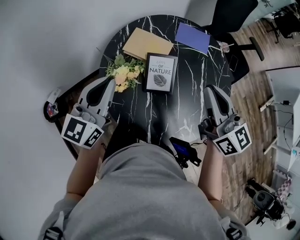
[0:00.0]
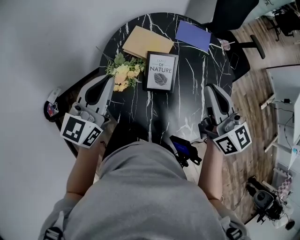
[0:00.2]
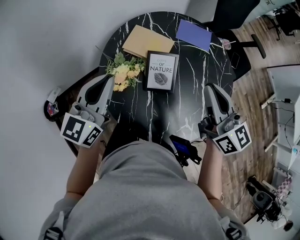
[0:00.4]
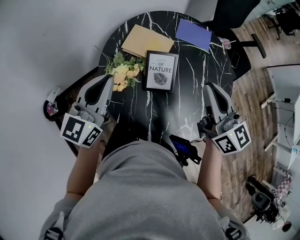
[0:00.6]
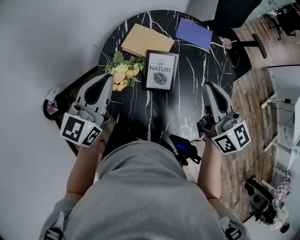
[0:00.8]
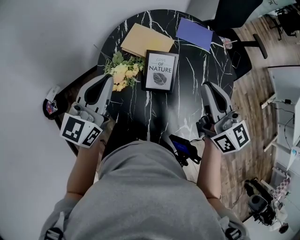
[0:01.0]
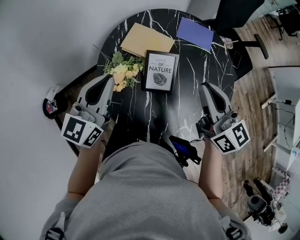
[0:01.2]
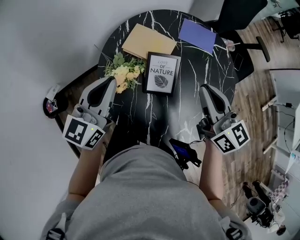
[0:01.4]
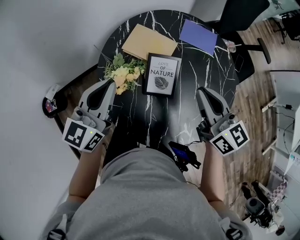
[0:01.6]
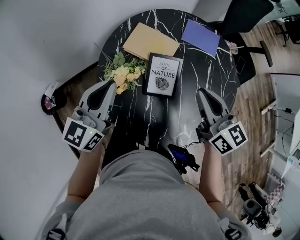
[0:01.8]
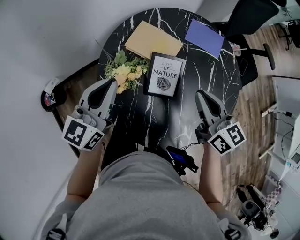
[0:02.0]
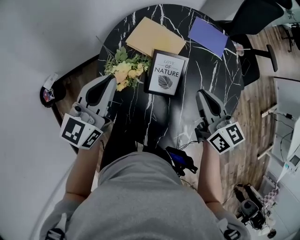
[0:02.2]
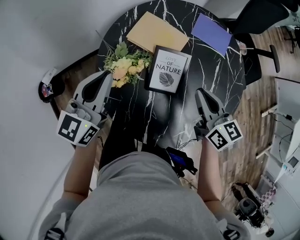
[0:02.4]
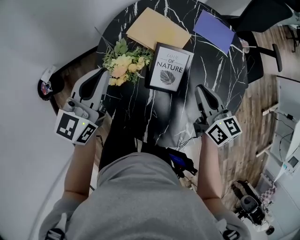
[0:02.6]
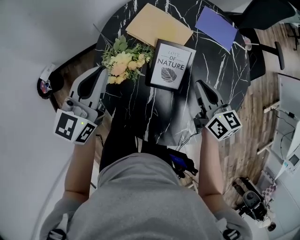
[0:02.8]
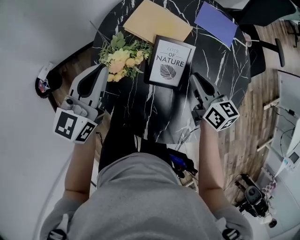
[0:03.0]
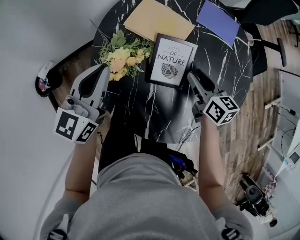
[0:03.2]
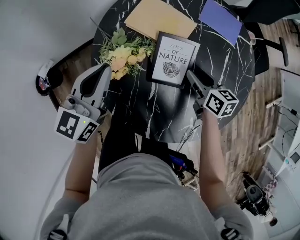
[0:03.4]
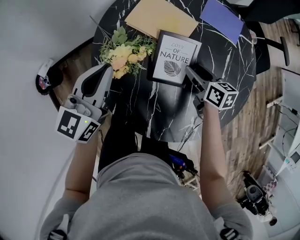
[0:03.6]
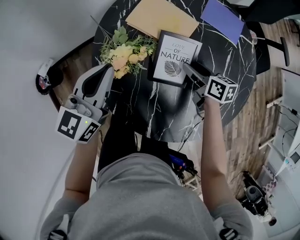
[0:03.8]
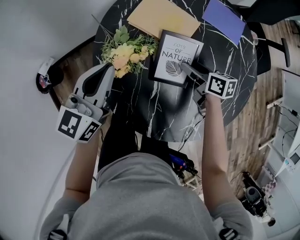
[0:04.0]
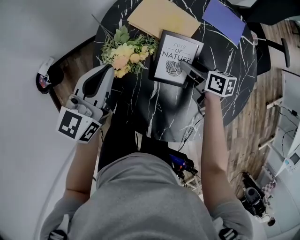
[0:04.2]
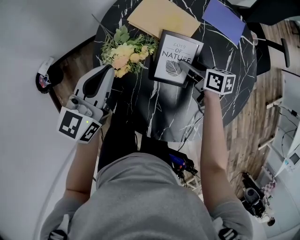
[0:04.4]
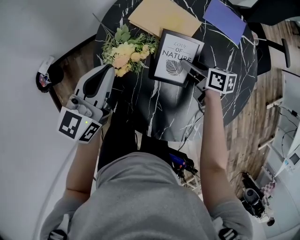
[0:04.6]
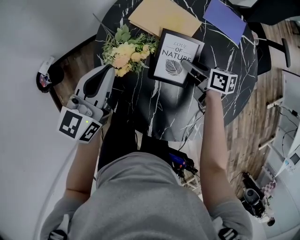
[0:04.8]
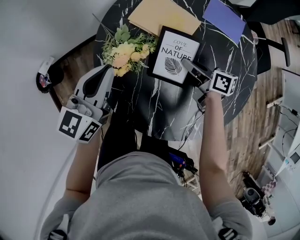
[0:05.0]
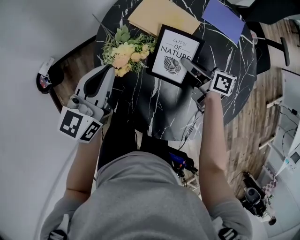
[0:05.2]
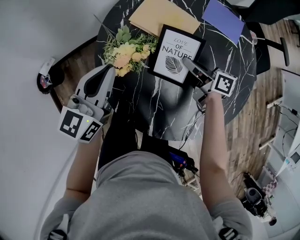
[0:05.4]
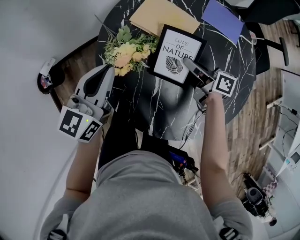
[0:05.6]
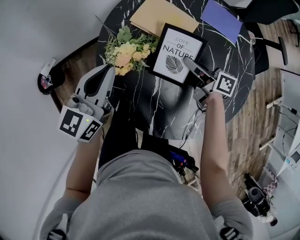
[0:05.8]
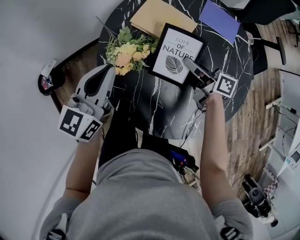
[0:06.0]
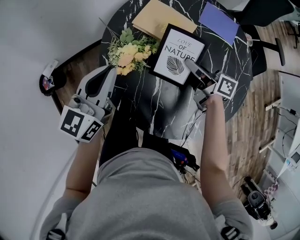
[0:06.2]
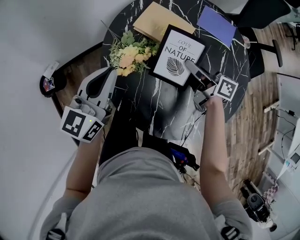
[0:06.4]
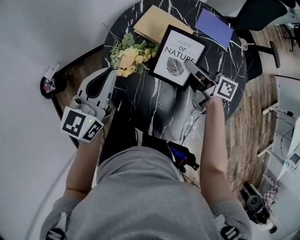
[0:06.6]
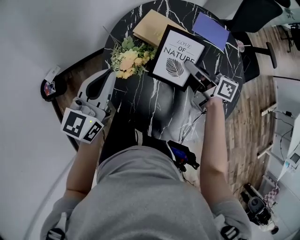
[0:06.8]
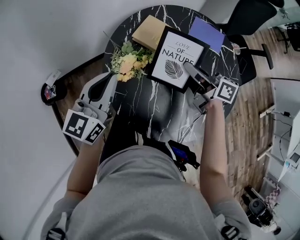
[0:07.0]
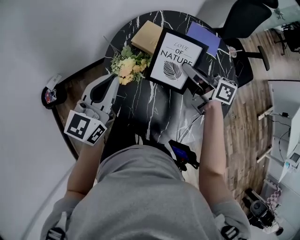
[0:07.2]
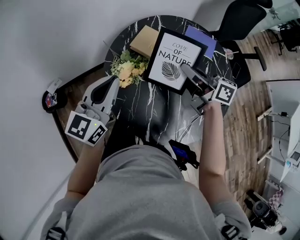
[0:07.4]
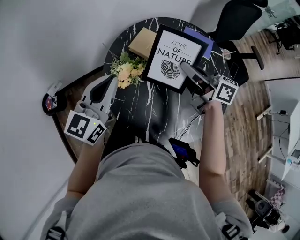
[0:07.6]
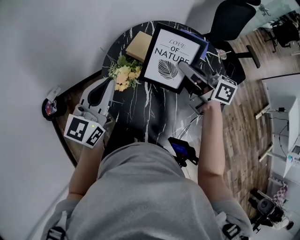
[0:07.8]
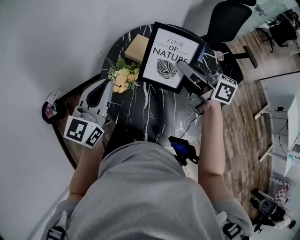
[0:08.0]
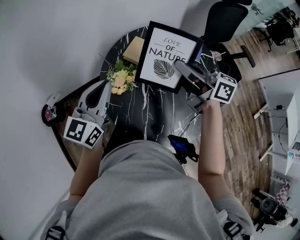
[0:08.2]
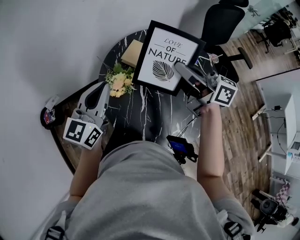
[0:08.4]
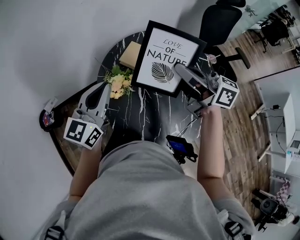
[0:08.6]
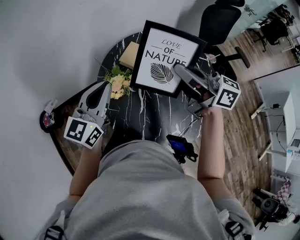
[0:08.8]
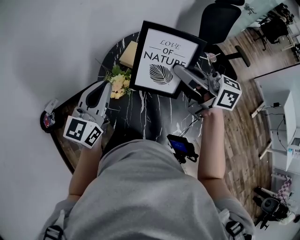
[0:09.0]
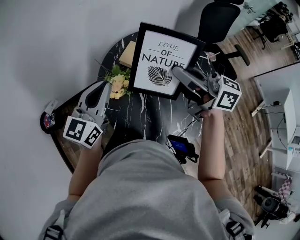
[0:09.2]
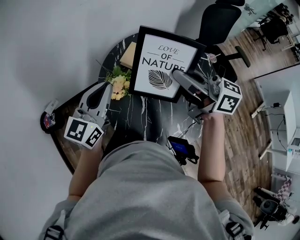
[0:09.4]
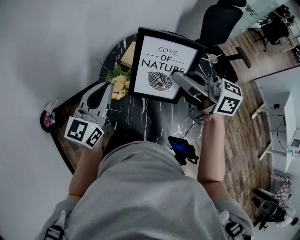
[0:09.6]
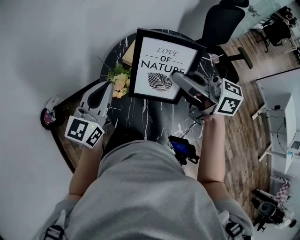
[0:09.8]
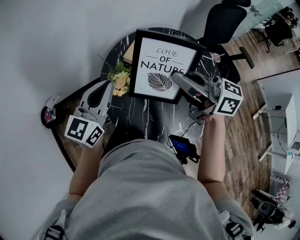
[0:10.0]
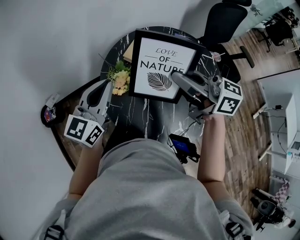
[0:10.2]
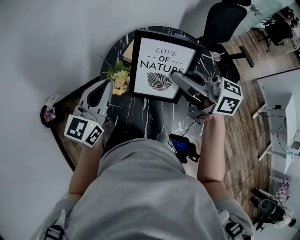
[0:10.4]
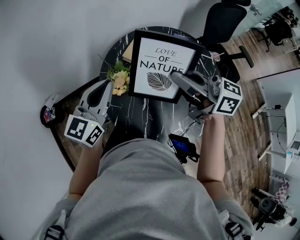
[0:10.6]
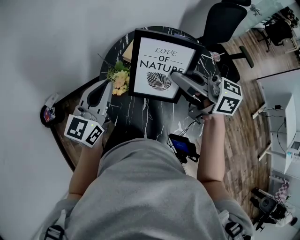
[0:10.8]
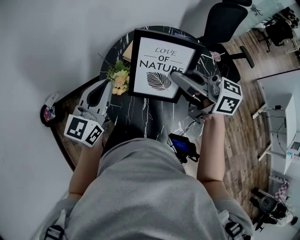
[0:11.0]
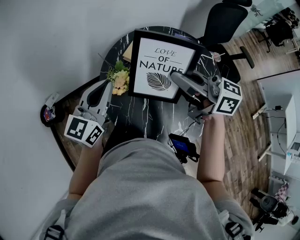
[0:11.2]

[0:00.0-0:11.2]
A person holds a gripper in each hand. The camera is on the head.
0:00.0 to 0:01.6: The right gripper is displaced downward by some 5 cm.
0:01.6 to 0:03.2: The right gripper goes roughly 20 cm downward, rotates some 20 degrees, and opens its fingers, while the left gripper heads downward, covering approximately 10 cm.
0:03.2 to 0:04.8: The right gripper is displaced downward by some 5 cm, and rotates some 20 degrees.
0:04.8 to 0:06.4: The left gripper moves about 5 cm; the right gripper heads upward, covering approximately 10 cm, changes its angle by some 30 degrees, and closes up.
0:06.4 to 0:08.0: The left gripper goes some 10 cm upward. The right gripper goes roughly 20 cm upward, and turns by roughly 20 degrees.
0:08.0 to 0:09.6: The right gripper moves upward, some 10 cm.
0:09.6 to 0:11.2: Both grippers stay about where they are.

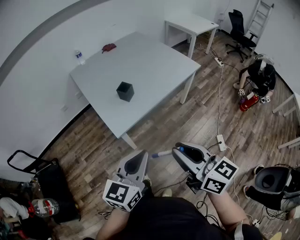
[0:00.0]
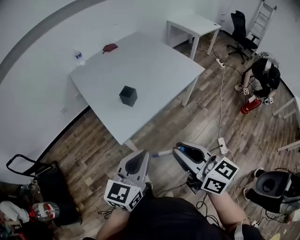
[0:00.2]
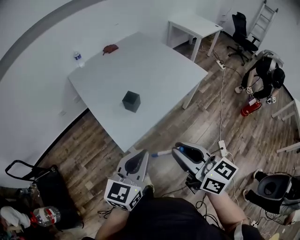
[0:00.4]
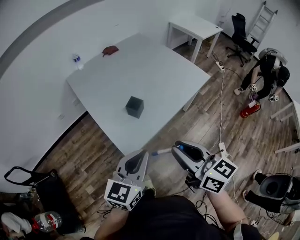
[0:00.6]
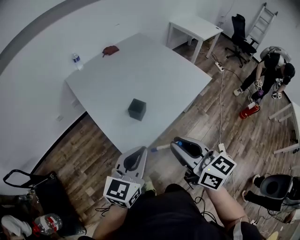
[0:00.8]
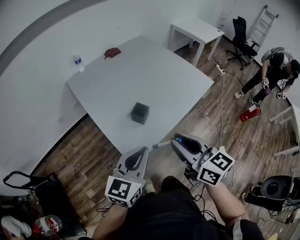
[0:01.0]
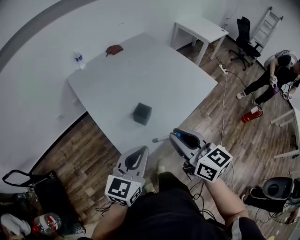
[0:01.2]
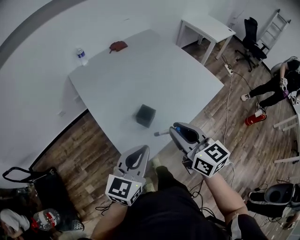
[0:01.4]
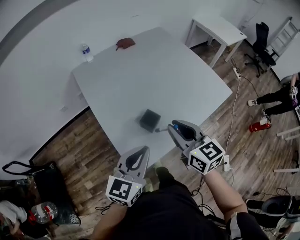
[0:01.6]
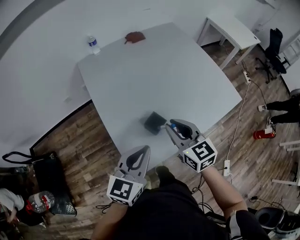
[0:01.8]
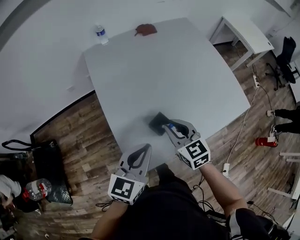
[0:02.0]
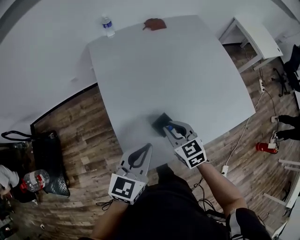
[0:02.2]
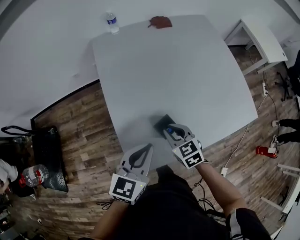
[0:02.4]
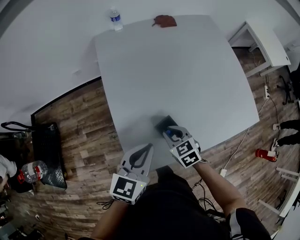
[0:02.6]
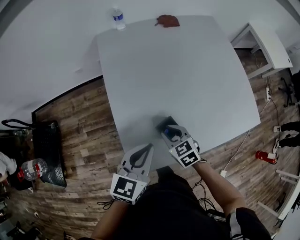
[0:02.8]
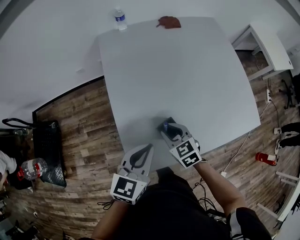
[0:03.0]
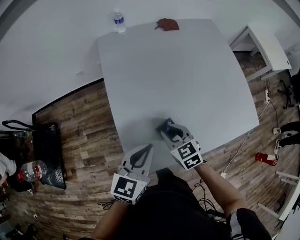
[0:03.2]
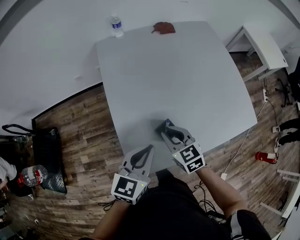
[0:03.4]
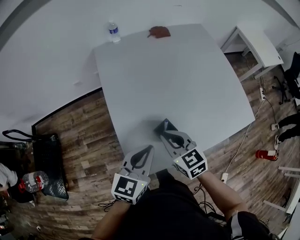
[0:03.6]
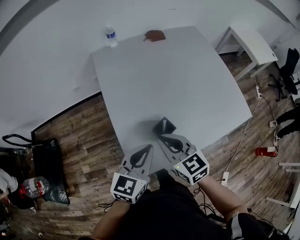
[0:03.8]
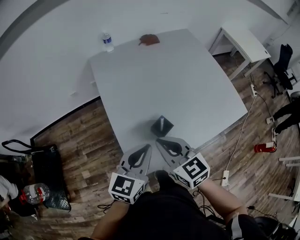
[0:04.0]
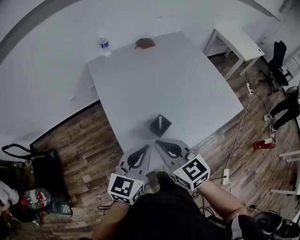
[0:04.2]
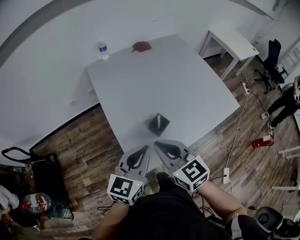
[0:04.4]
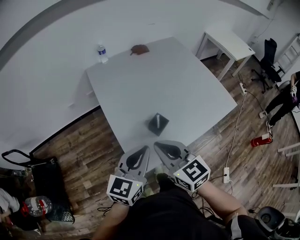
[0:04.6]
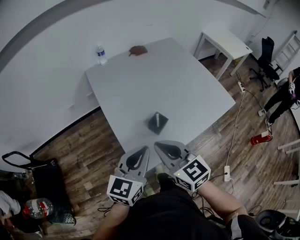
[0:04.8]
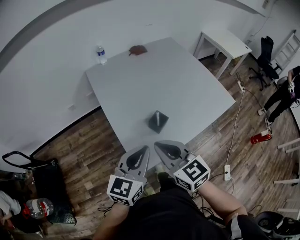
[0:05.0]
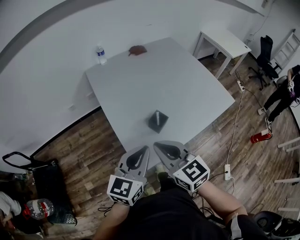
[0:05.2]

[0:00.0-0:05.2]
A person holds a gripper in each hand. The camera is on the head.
0:00.0 to 0:01.8: Both grippers move forward, some 35 cm. The right gripper rotates some 20 degrees.
0:01.8 to 0:03.4: The right gripper shifts approximately 15 cm downward and to the left, and turns by about 20 degrees. The left gripper is displaced forward by some 5 cm.
0:03.4 to 0:05.2: The left gripper moves backward and upward, about 10 cm, while the right gripper is displaced upward and backward by some 20 cm, and swivels approximately 20 degrees.

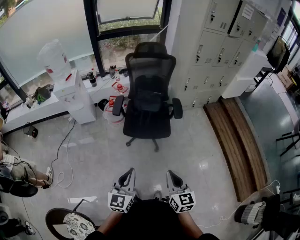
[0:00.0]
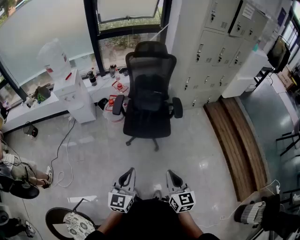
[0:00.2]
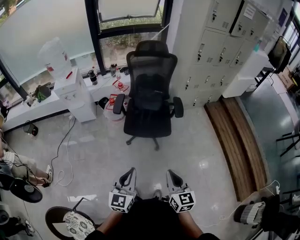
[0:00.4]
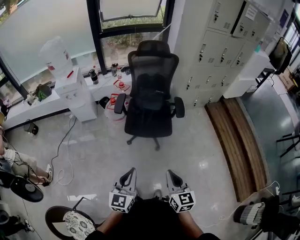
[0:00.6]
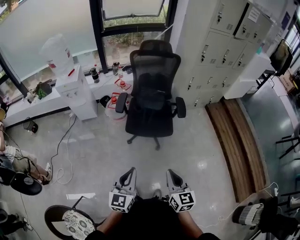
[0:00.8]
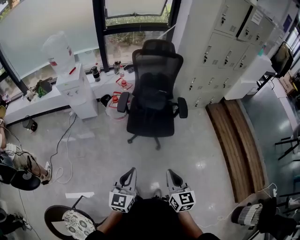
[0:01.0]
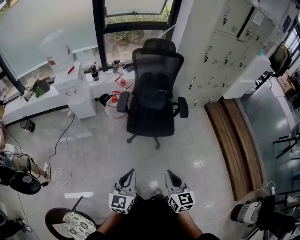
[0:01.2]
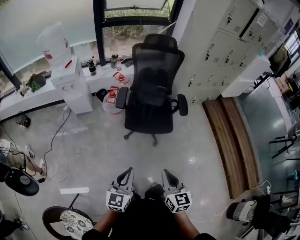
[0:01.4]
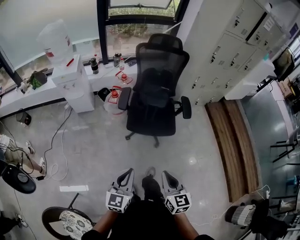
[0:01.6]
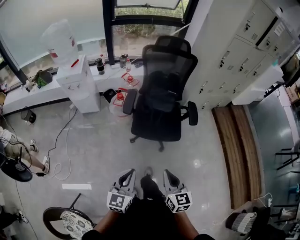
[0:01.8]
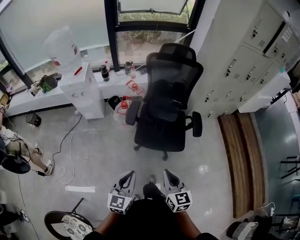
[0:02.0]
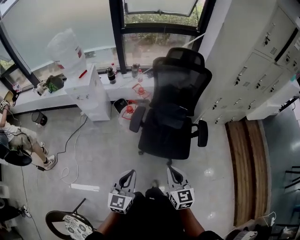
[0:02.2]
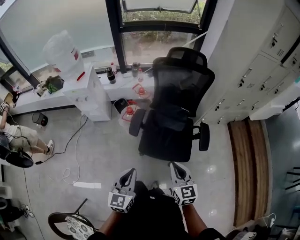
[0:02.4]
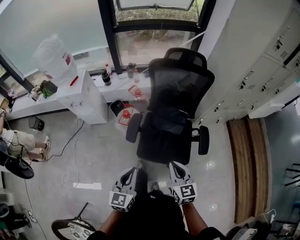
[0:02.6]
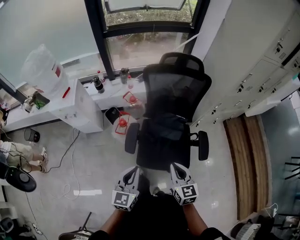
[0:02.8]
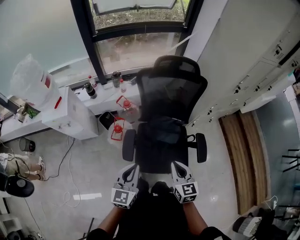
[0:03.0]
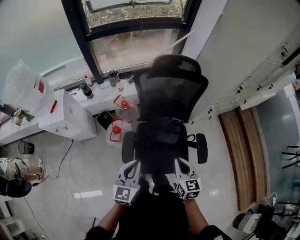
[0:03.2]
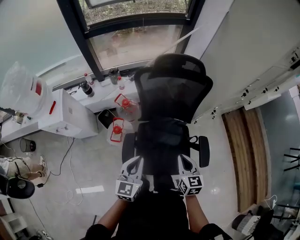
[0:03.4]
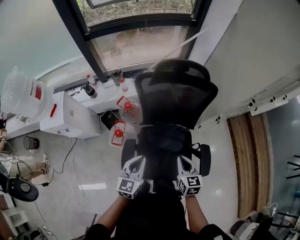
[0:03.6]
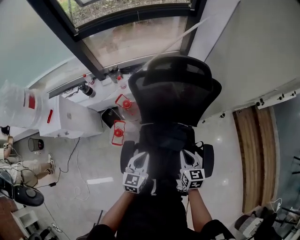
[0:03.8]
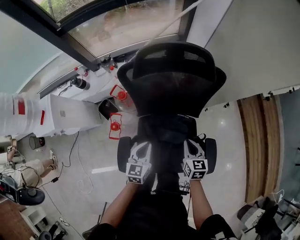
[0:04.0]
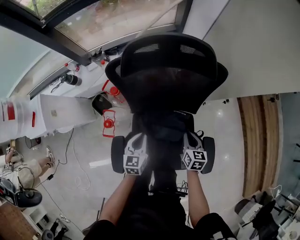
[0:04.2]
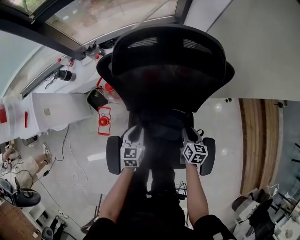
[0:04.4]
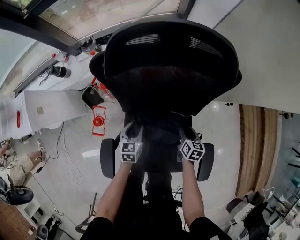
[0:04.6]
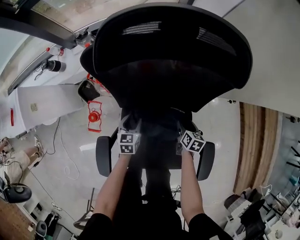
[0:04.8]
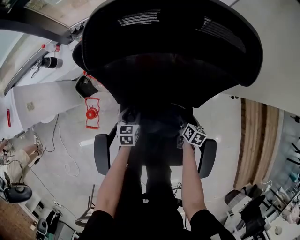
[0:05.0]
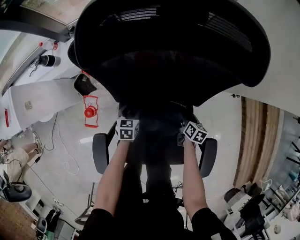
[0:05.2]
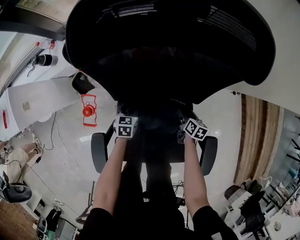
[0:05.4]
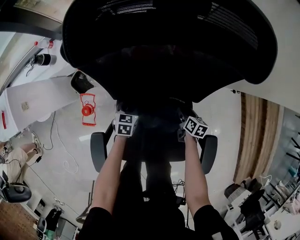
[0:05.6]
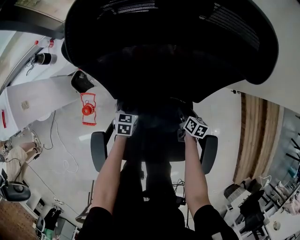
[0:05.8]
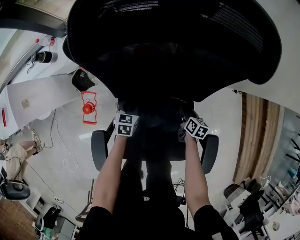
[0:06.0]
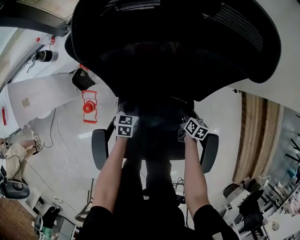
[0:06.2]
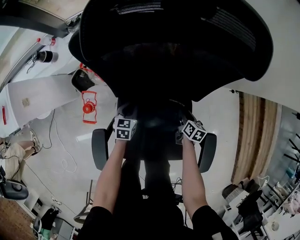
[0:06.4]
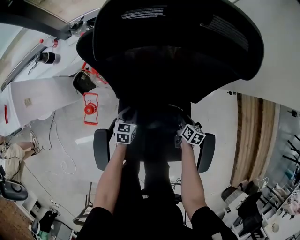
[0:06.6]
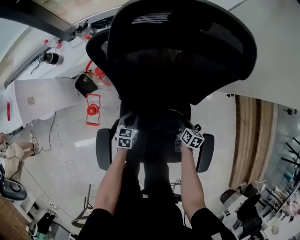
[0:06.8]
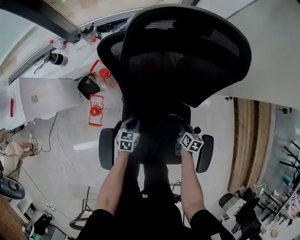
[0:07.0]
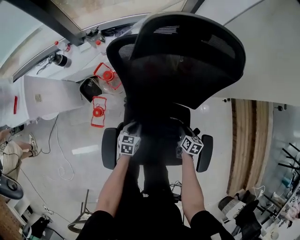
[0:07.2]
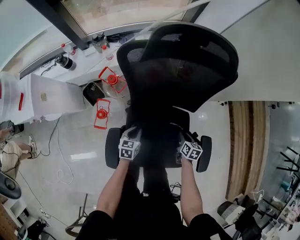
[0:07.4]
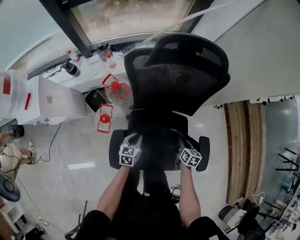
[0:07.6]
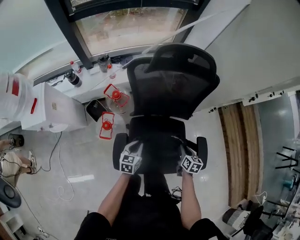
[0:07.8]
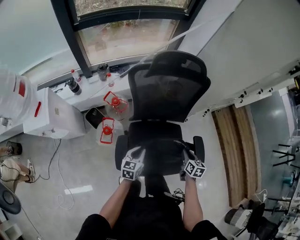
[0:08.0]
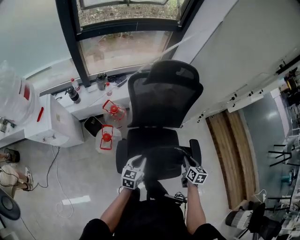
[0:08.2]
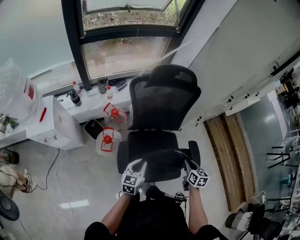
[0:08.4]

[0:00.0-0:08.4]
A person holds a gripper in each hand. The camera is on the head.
0:00.0 to 0:01.4: The two grippers go some 10 cm to the left.
0:01.4 to 0:02.8: Both grippers move forward, some 40 cm.
0:02.8 to 0:04.2: The right gripper goes roughly 40 cm forward, downward and to the right, and turns by about 30 degrees, while the left gripper travels forward and downward by some 40 cm, and changes its angle by some 20 degrees.
0:04.2 to 0:05.6: The two grippers go about 25 cm downward. The left gripper rotates some 20 degrees, and opens, while the right gripper changes its angle by approximately 20 degrees, and opens up.
0:05.6 to 0:07.0: The two grippers go roughly 5 cm backward. The right gripper closes up.
0:07.0 to 0:08.4: Both grippers travel together upward and backward, roughly 35 cm. The left gripper changes its angle by about 30 degrees, while the right gripper rotates roughly 20 degrees.
